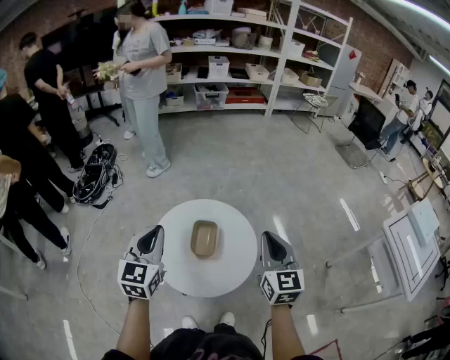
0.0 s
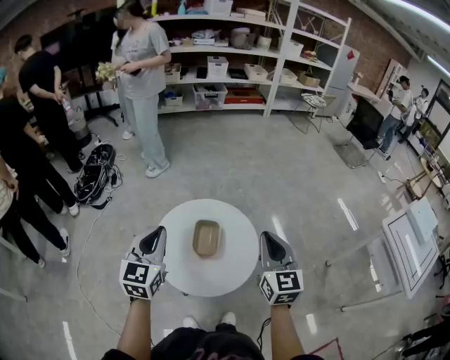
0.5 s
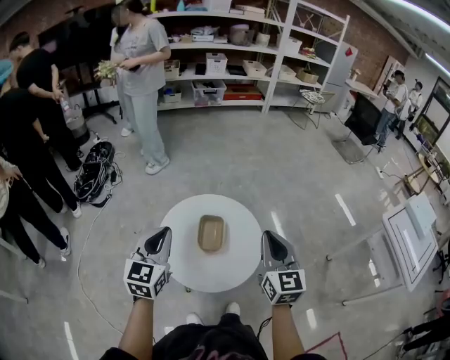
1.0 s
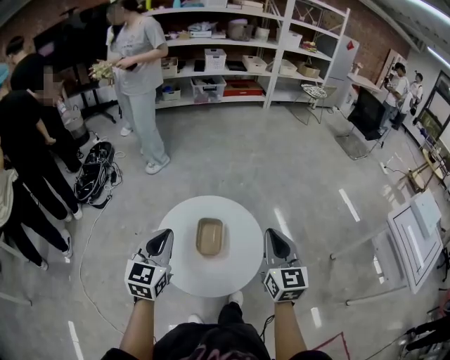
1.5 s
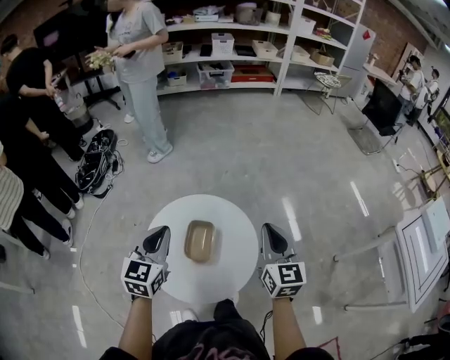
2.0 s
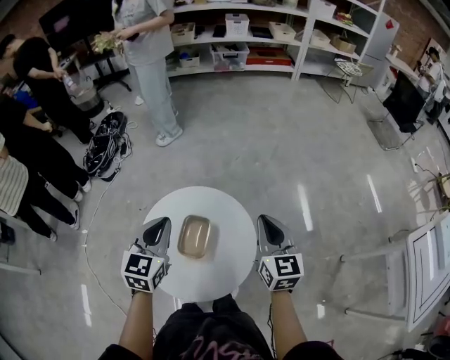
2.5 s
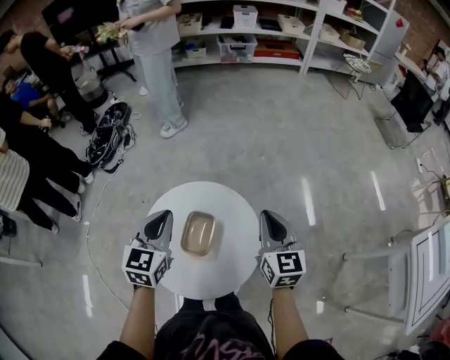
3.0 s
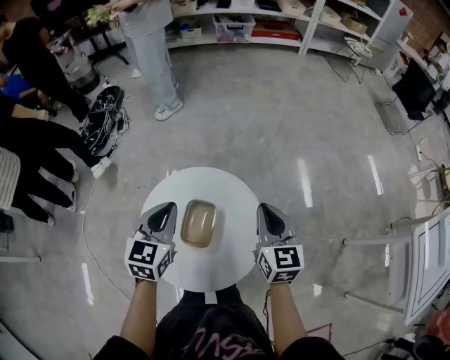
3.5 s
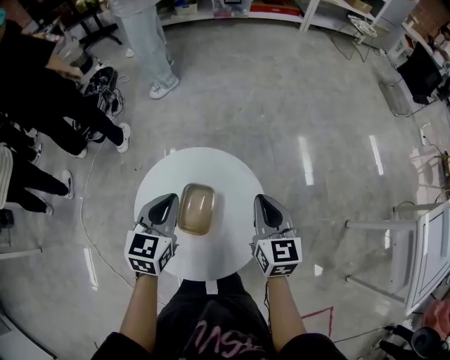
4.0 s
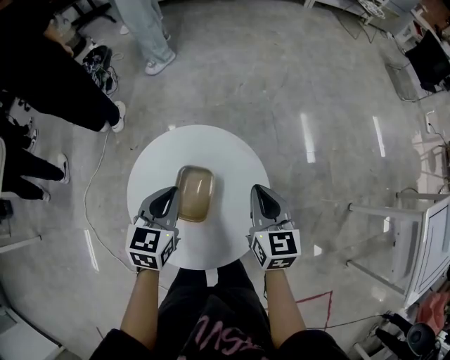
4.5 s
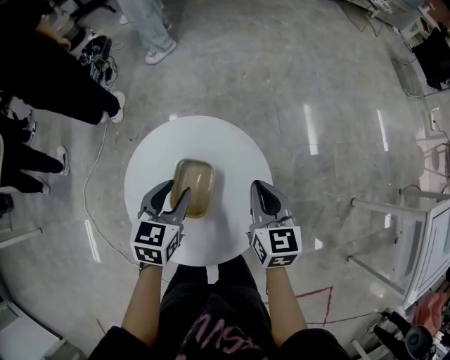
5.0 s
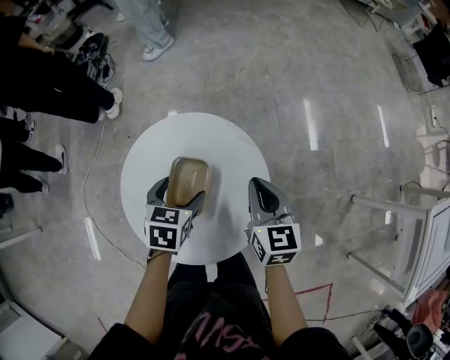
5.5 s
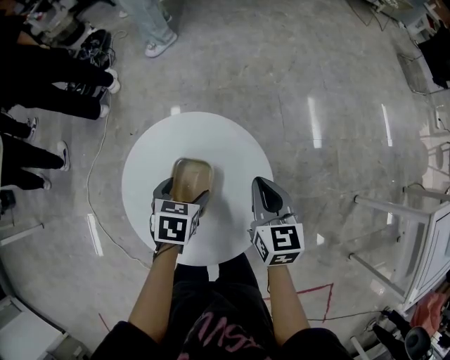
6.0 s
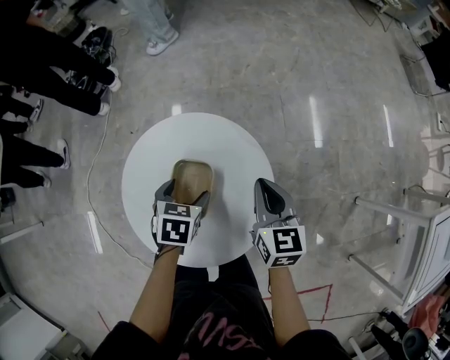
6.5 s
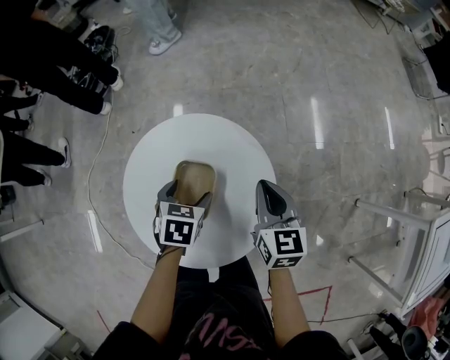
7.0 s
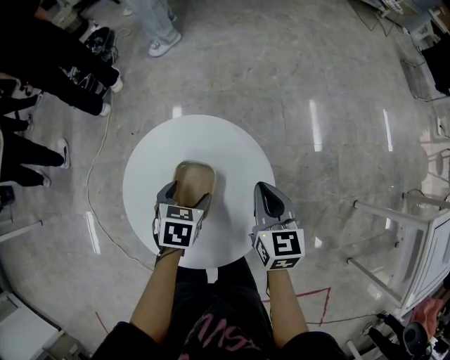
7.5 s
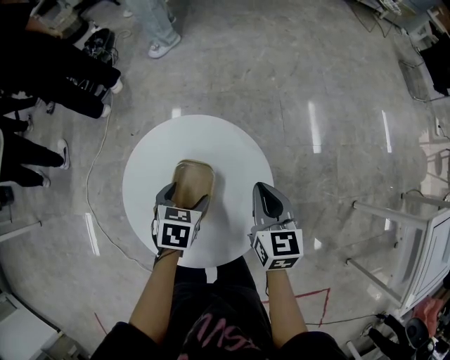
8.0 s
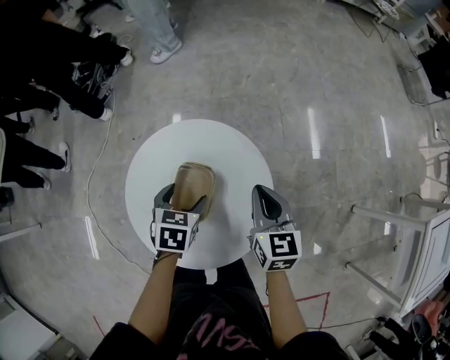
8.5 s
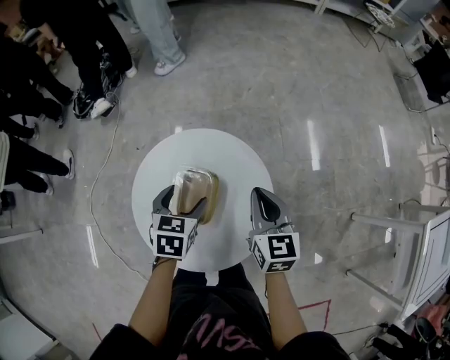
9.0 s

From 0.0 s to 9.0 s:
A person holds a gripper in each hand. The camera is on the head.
From 0.0 s to 2.0 s: The left gripper shifts approximately 15 cm forward, downward and to the right. Meanwhile the right gripper moves forward and downward, approximately 15 cm.
From 2.0 s to 4.5 s: The grippers both shift downward and forward by about 20 cm.
From 4.5 s to 7.0 s: The left gripper travels downward by roughly 15 cm, turns by roughly 30 degrees, and opens its fingers. Meanwhile the right gripper shifts approximately 5 cm downward.
From 7.0 s to 9.0 s: The grippers both shift upward by roughly 5 cm.

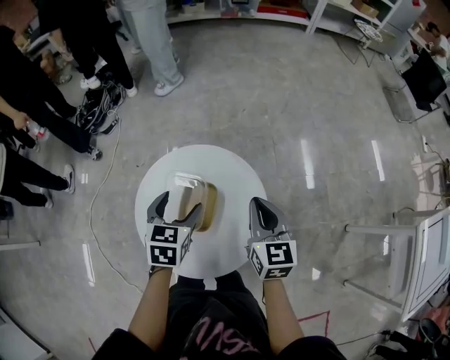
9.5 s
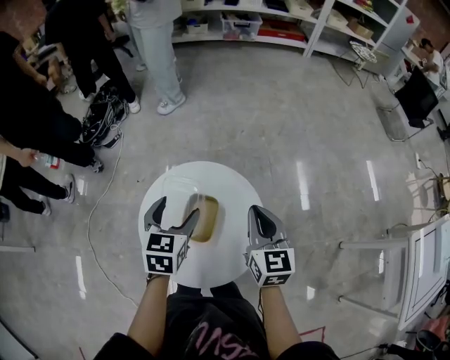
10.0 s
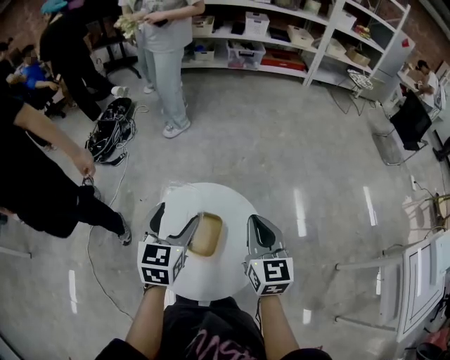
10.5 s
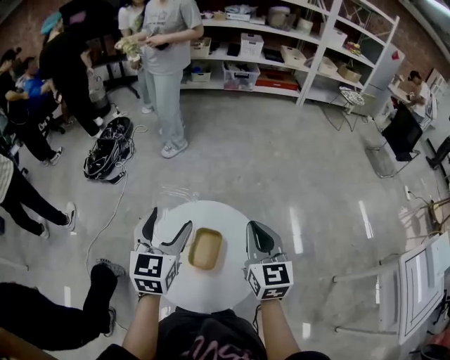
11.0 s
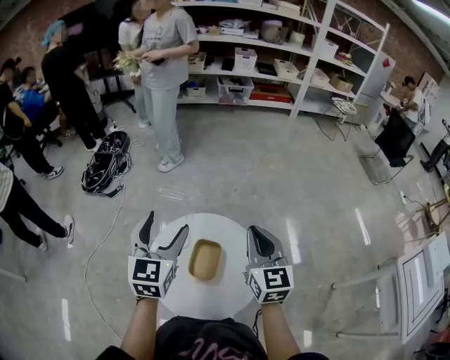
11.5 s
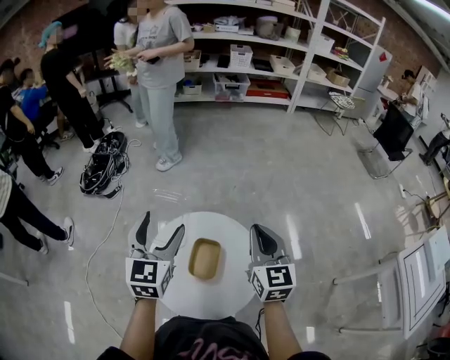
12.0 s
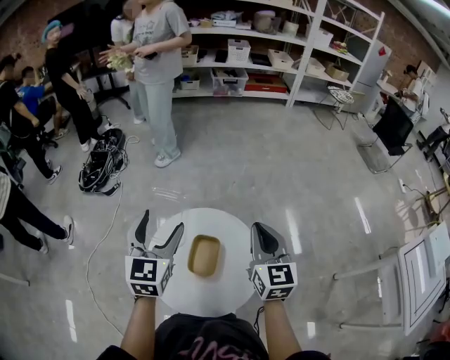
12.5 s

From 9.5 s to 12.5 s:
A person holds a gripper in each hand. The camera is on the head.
From 9.5 s to 11.0 s: The grippers both shift upward by about 20 cm. The left gripper changes its angle by approximately 30 degrees.
From 11.0 s to 12.5 s: There are only small adjustments of the grippers.

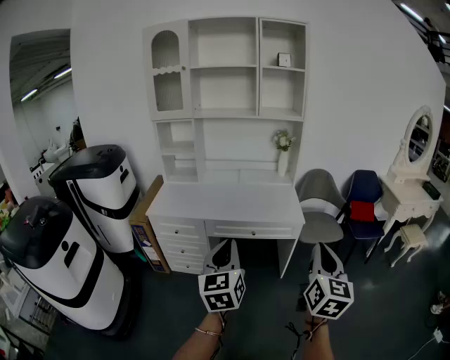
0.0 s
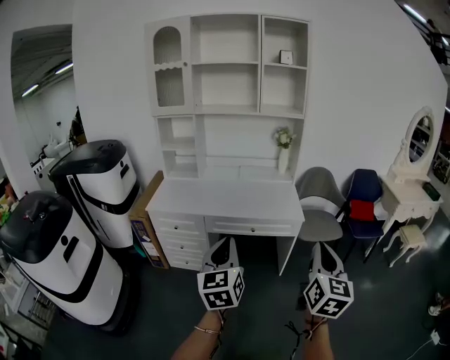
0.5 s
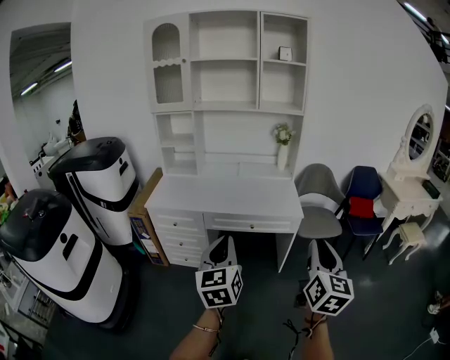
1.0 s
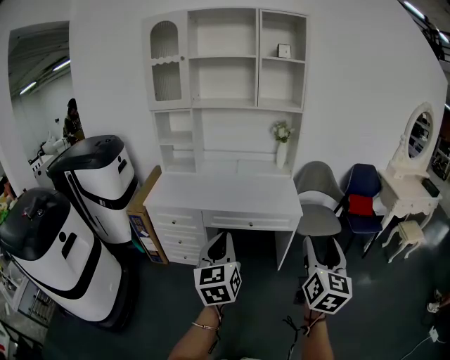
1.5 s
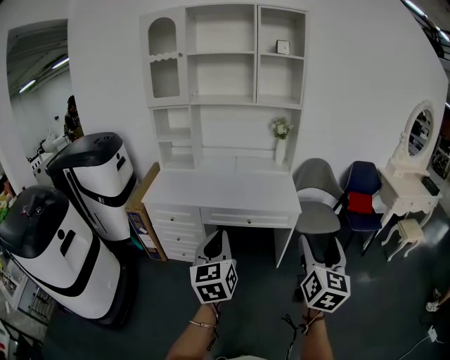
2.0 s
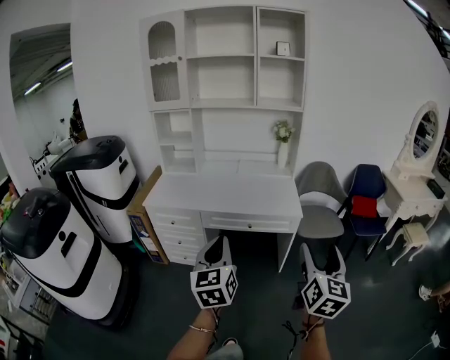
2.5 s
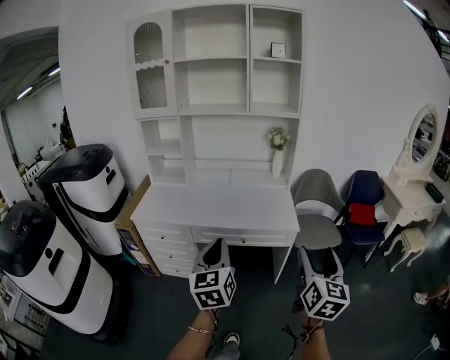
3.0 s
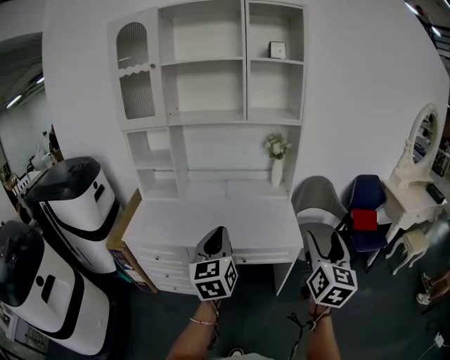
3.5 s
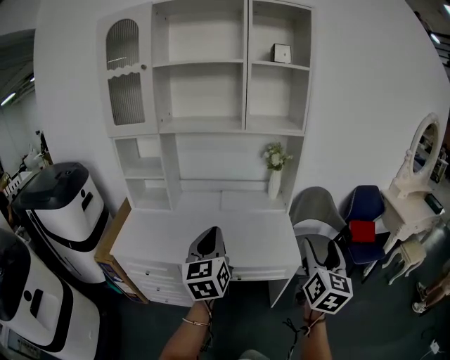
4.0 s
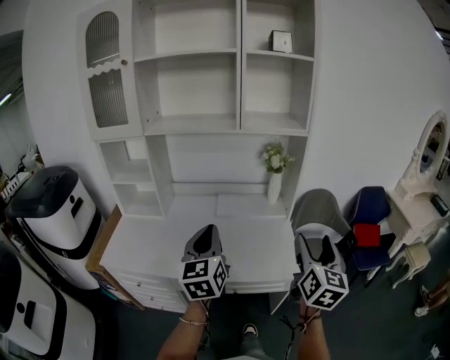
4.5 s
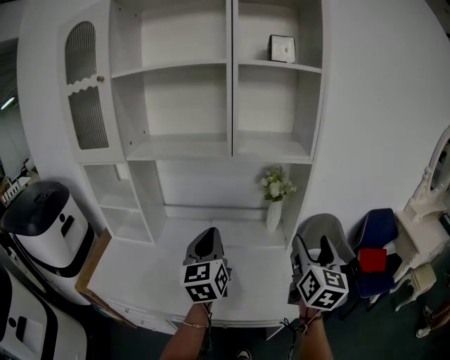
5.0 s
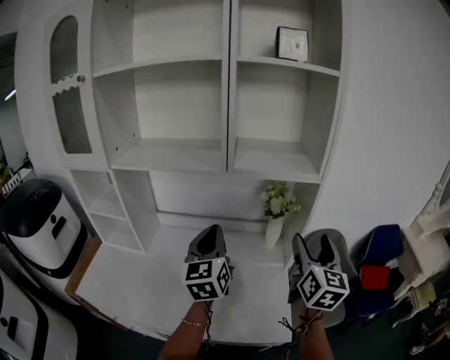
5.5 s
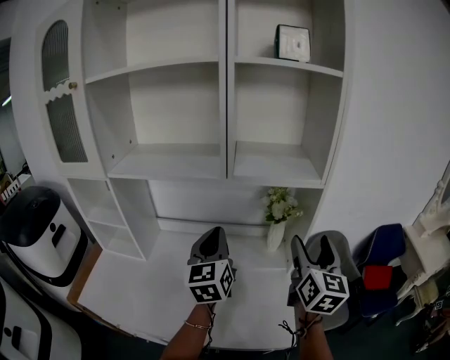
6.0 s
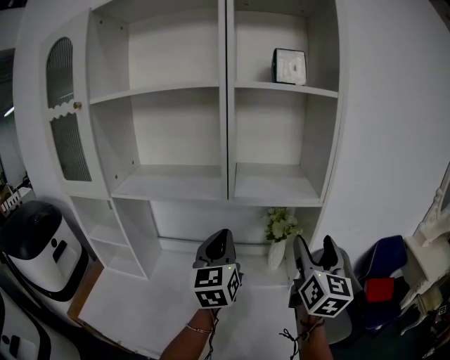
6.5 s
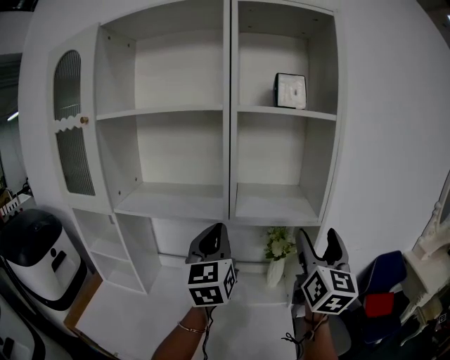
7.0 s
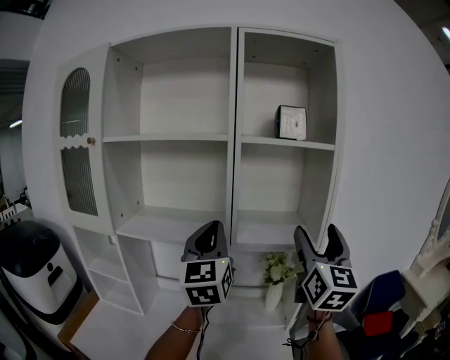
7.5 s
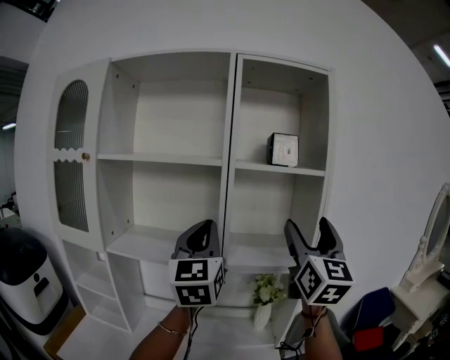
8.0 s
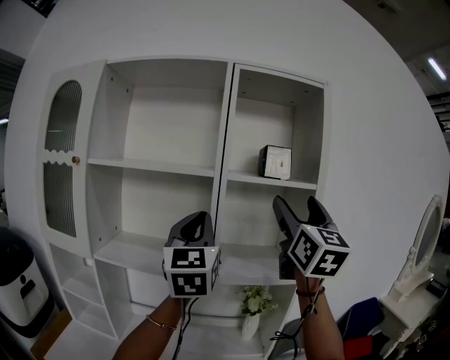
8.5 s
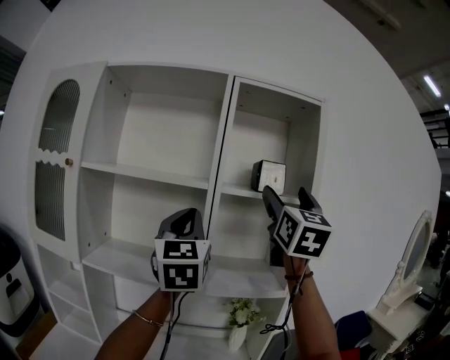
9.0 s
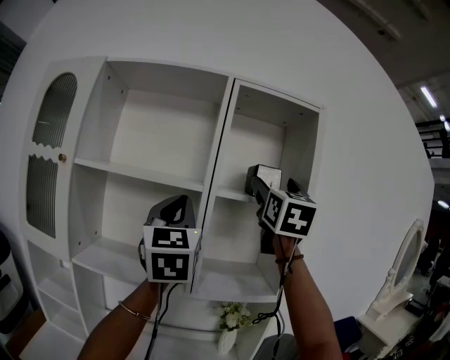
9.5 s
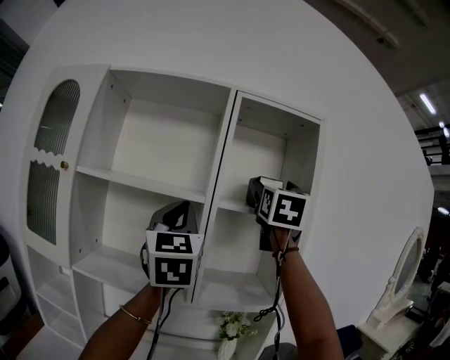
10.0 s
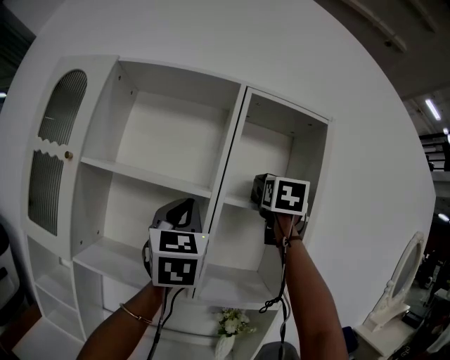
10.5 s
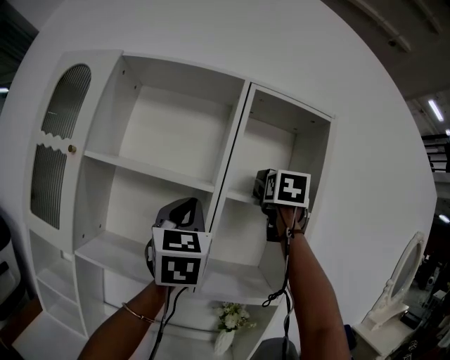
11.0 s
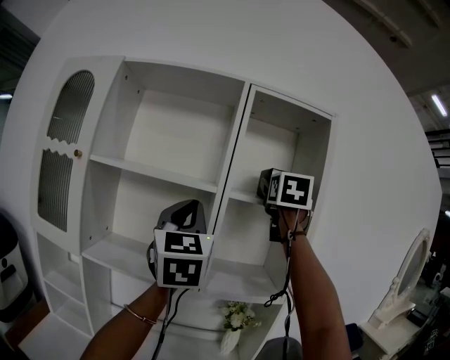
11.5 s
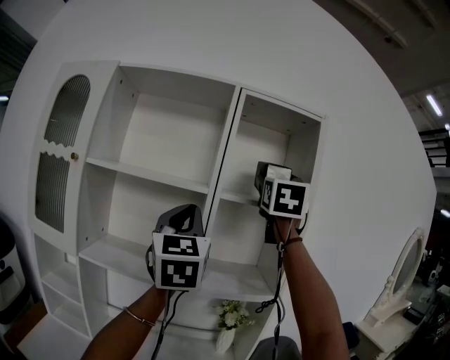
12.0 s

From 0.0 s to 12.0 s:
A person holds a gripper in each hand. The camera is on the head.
From 0.0 s to 2.0 s: The right gripper opens up.
From 2.0 s to 4.0 s: The grippers both shift forward by some 30 cm.
From 4.0 s to 6.0 s: The two grippers go some 40 cm forward.
From 6.0 s to 8.0 s: The two grippers go about 30 cm upward. The left gripper rotates about 30 degrees. The right gripper changes its angle by roughly 30 degrees.
From 8.0 s to 10.0 s: The right gripper goes about 20 cm upward and forward, while the left gripper moves upward, some 10 cm.
From 10.0 s to 12.0 s: The grippers make only small movements.

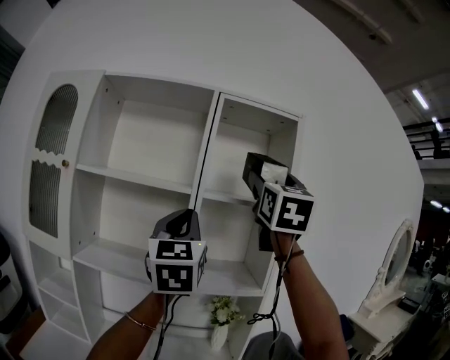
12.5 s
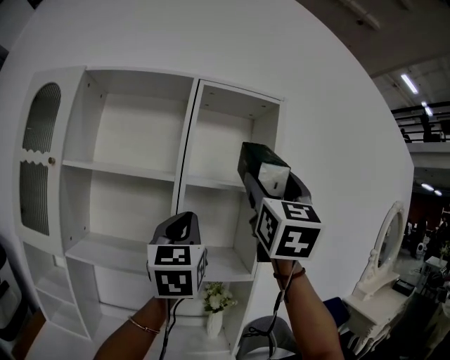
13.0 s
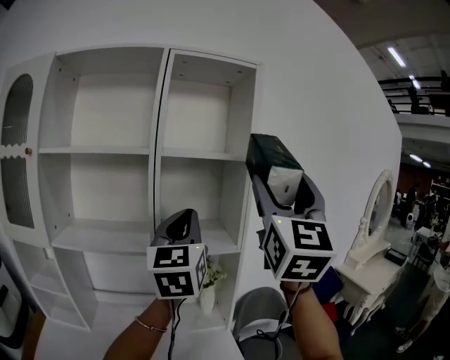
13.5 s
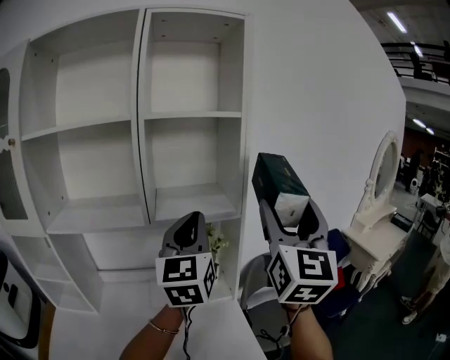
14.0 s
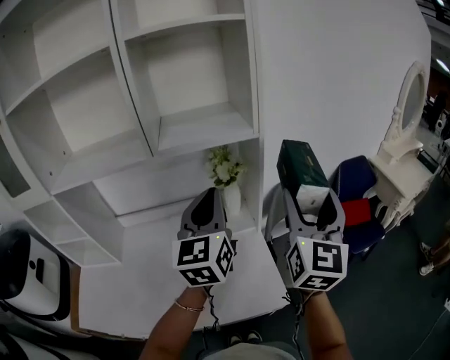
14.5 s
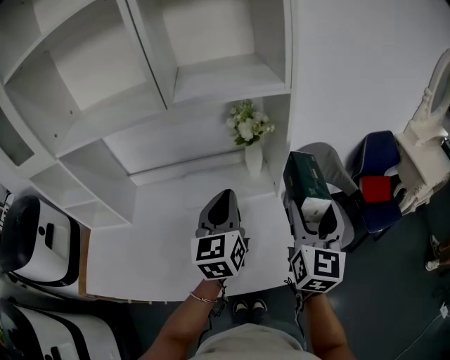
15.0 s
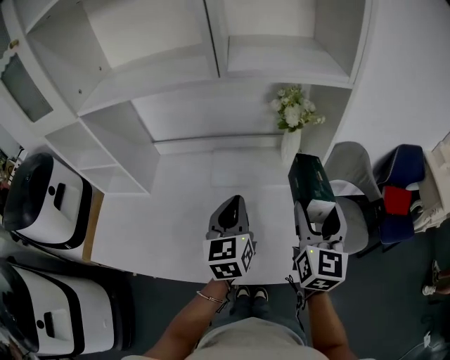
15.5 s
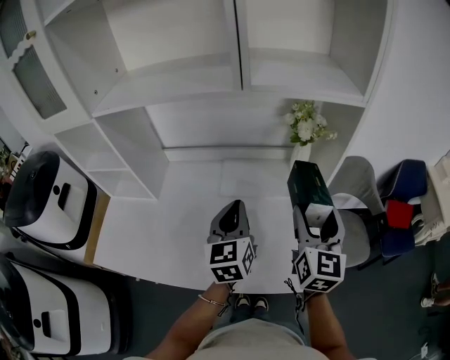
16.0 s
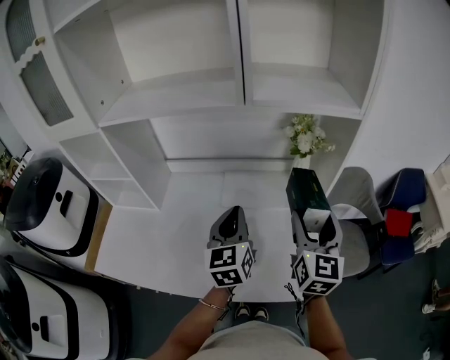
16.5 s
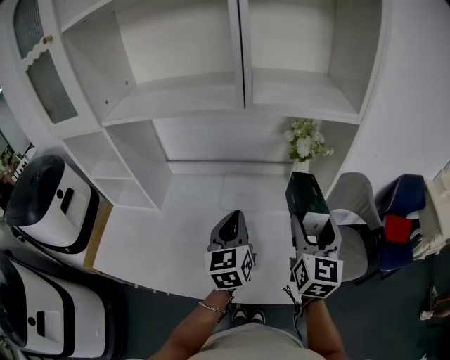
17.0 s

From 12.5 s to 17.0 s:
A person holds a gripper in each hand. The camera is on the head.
From 12.5 s to 14.5 s: Both grippers travel together downward and to the right, approximately 40 cm. The left gripper changes its angle by roughly 30 degrees. The right gripper turns by some 20 degrees.
From 14.5 s to 17.0 s: Both grippers move downward and to the left, some 25 cm. The right gripper swivels about 30 degrees. Meanwhile the left gripper rotates approximately 30 degrees.
